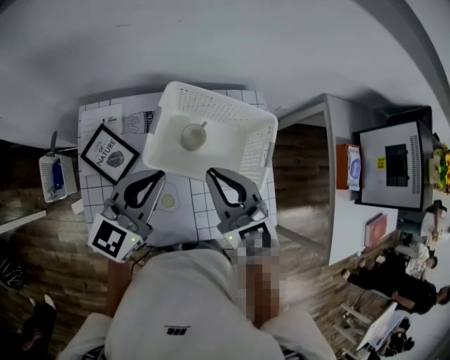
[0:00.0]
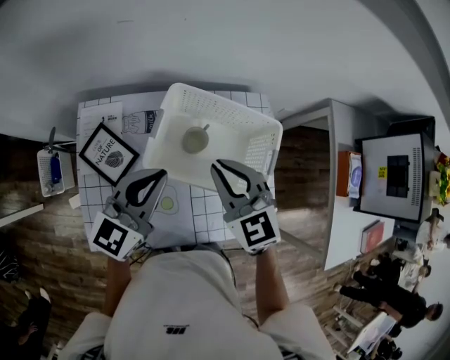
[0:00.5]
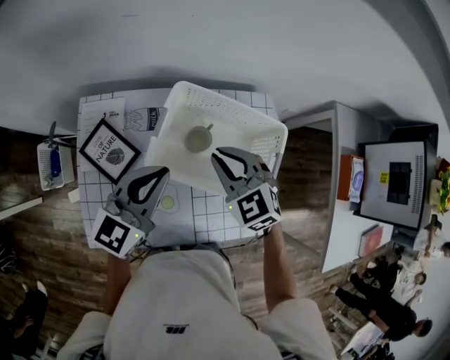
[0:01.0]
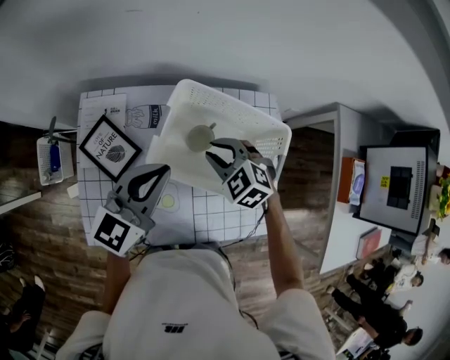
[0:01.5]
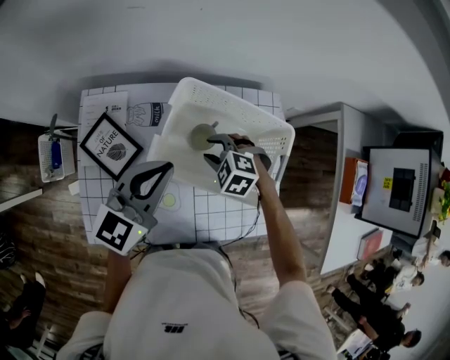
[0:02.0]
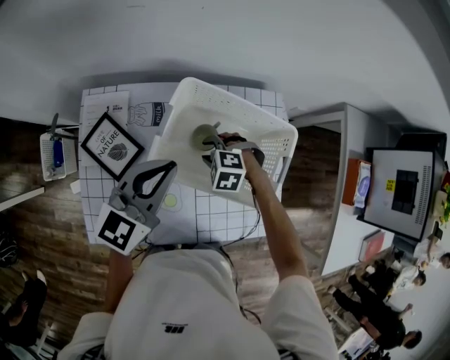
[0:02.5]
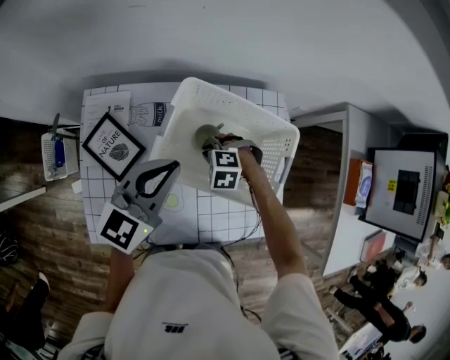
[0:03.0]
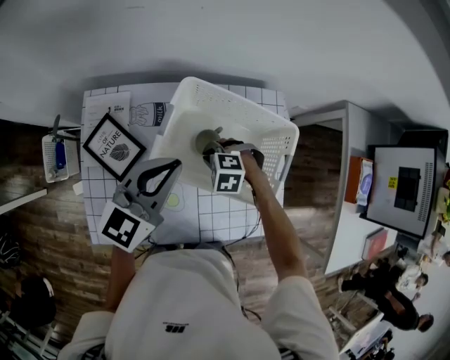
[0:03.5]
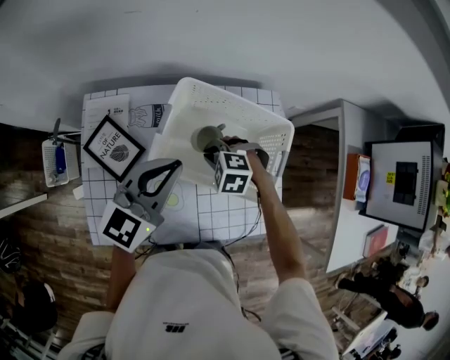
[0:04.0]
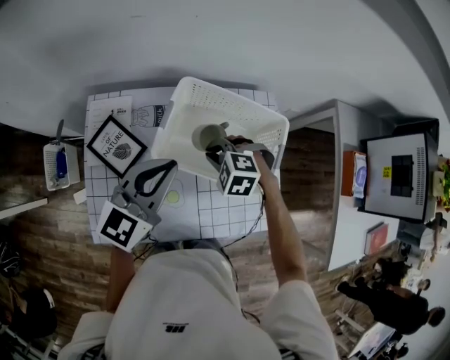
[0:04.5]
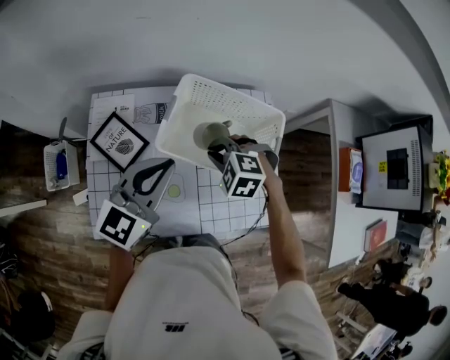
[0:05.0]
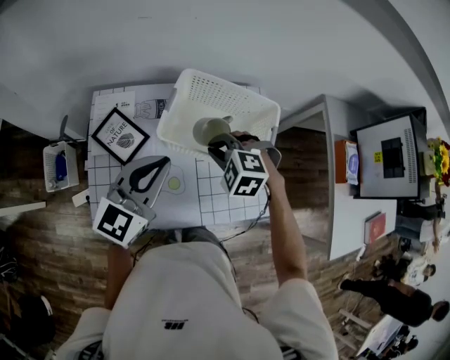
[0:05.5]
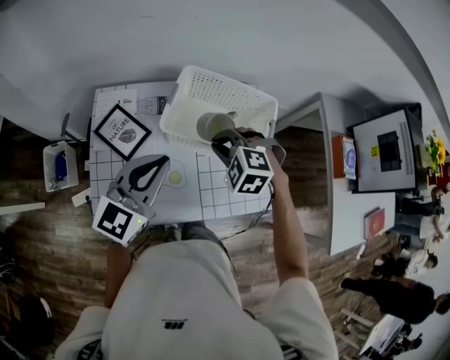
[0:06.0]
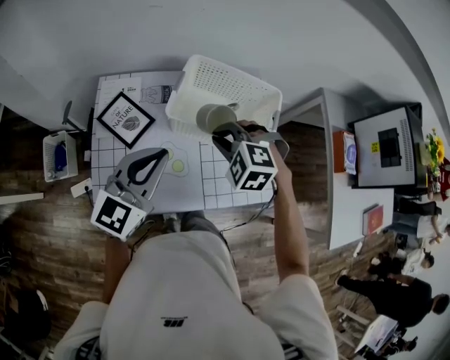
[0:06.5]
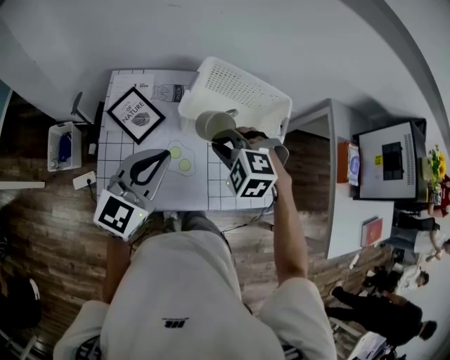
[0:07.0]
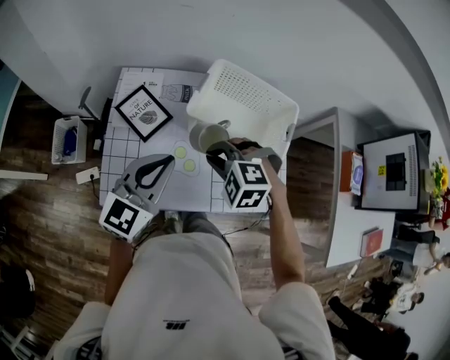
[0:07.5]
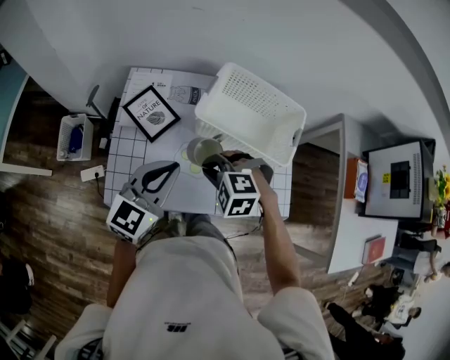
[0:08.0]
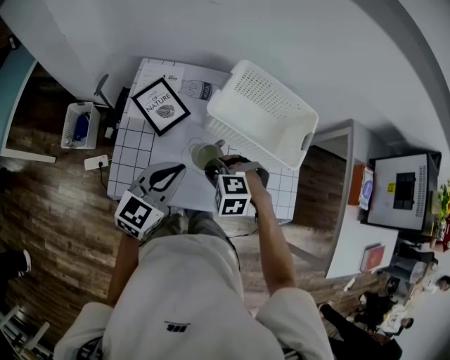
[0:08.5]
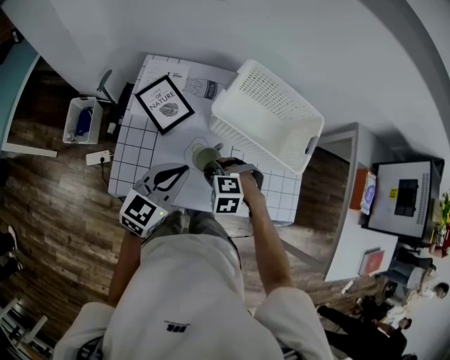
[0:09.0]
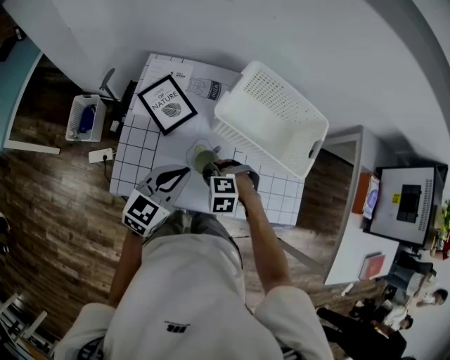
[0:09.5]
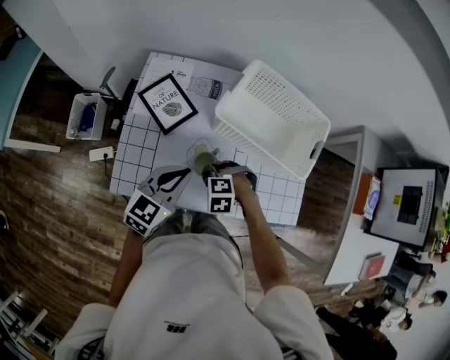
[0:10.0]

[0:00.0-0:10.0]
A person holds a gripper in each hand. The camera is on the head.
0:00.0 to 0:02.0: The left gripper moves some 5 cm. The right gripper is displaced downward by some 25 cm, angles its fingers downward, by about 50 degrees, and opens.
0:02.0 to 0:04.0: The right gripper closes.
0:04.0 to 0:06.0: The right gripper goes some 15 cm upward and backward, while the left gripper travels backward and to the left by about 15 cm.
0:06.0 to 0:08.0: The left gripper shifts approximately 5 cm backward. The right gripper is displaced backward and to the left by approximately 15 cm.
0:08.0 to 0:10.0: The right gripper is displaced downward by approximately 15 cm. Meanwhile the left gripper travels downward by some 10 cm.

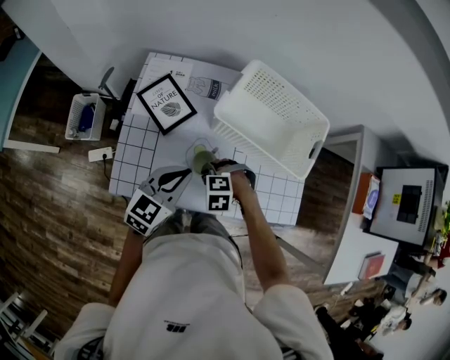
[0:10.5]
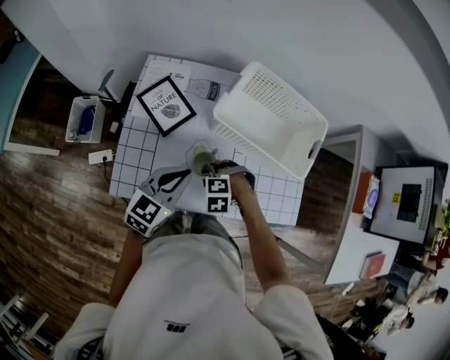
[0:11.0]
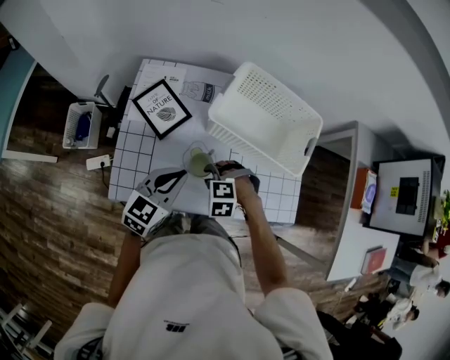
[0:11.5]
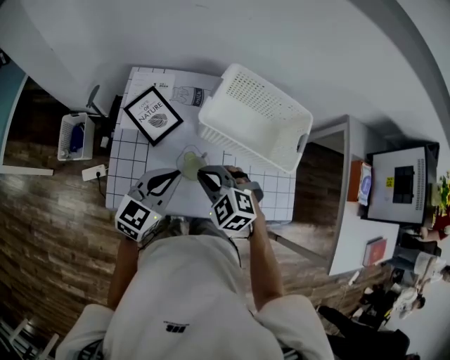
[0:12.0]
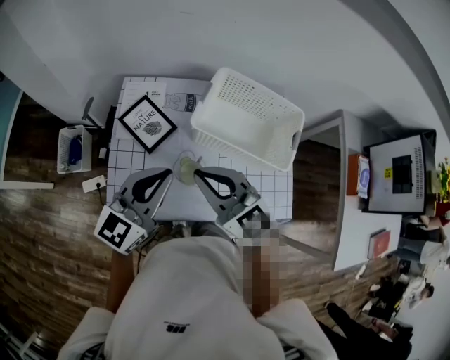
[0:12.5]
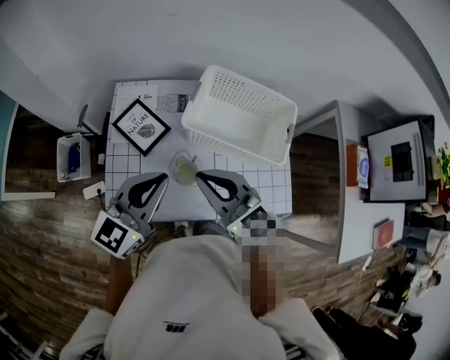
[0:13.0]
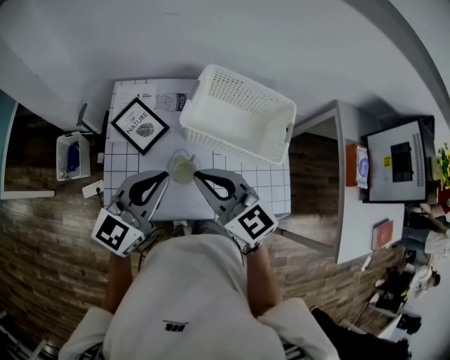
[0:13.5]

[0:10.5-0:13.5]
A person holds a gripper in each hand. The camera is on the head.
0:10.5 to 0:12.0: The right gripper moves upward, some 15 cm, rotates some 40 degrees, and opens, then closes once more.
0:12.0 to 0:13.5: Both grippers travel together upward, roughly 10 cm. The right gripper angles its fingers upward, by some 40 degrees.

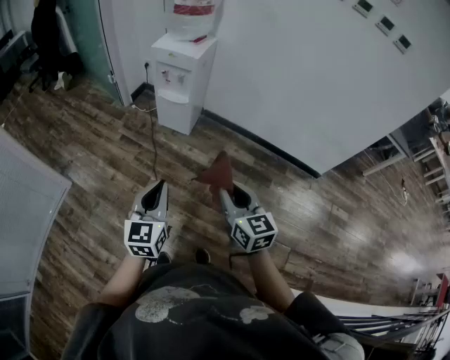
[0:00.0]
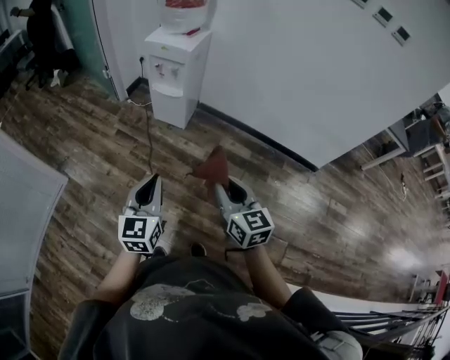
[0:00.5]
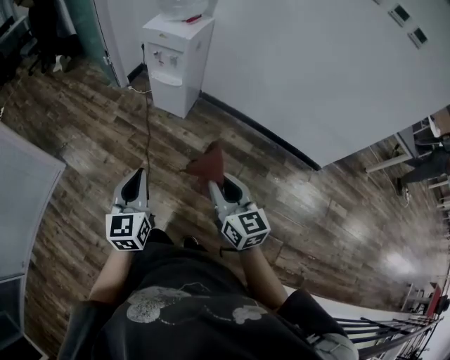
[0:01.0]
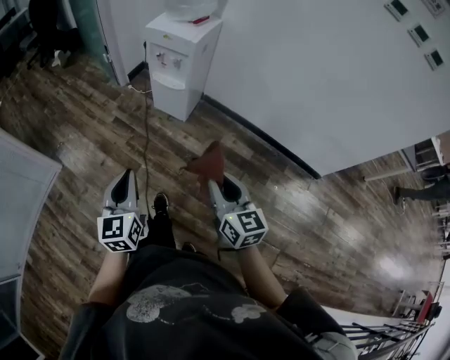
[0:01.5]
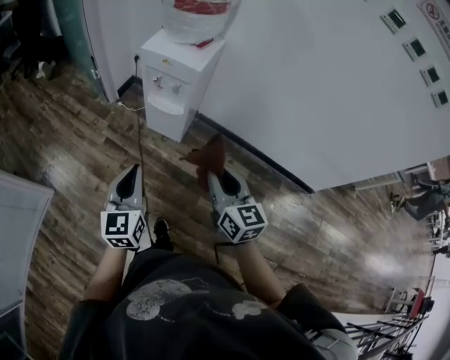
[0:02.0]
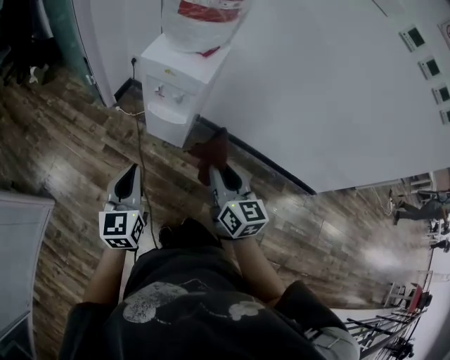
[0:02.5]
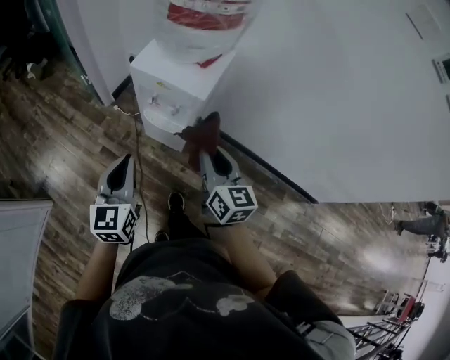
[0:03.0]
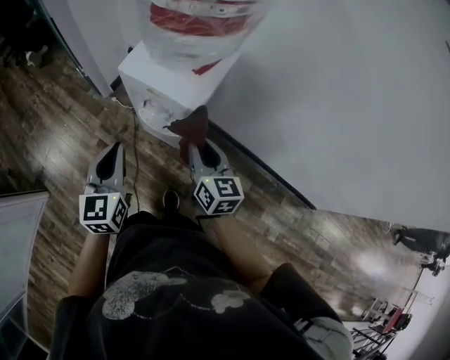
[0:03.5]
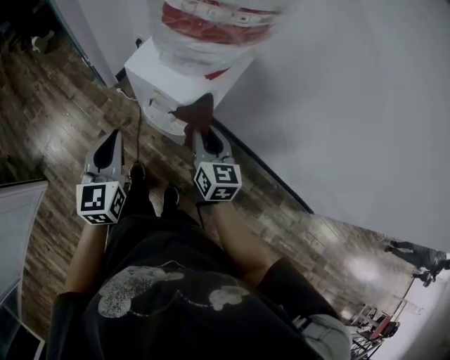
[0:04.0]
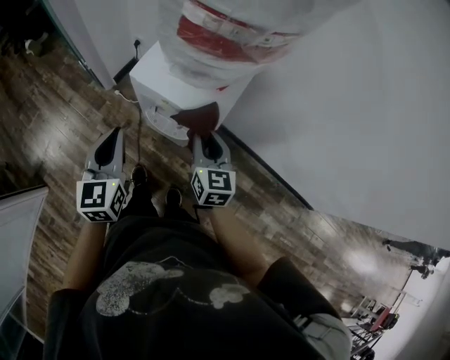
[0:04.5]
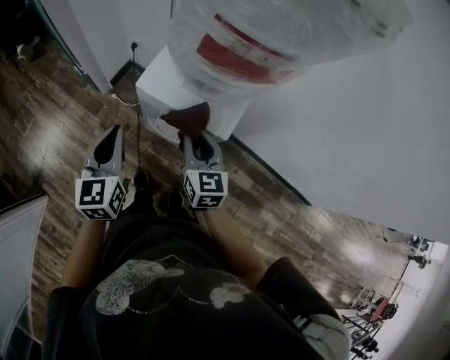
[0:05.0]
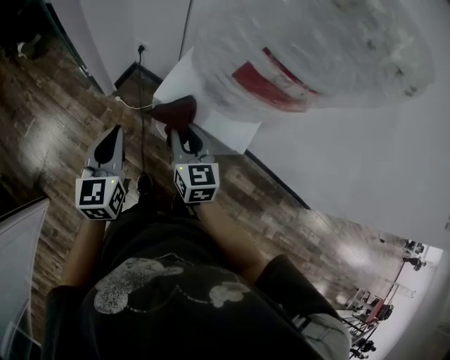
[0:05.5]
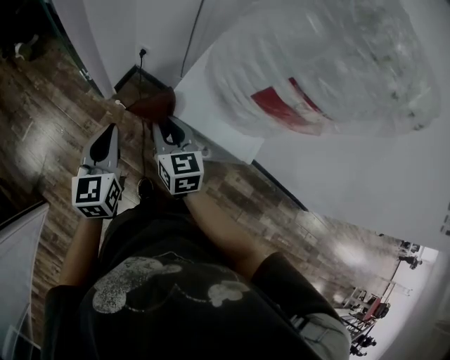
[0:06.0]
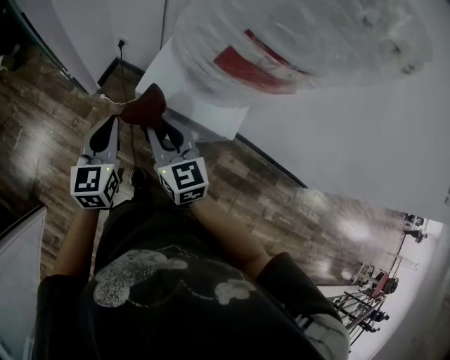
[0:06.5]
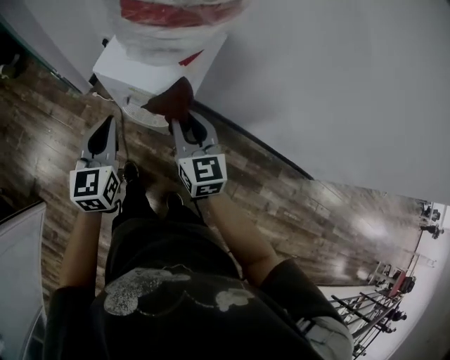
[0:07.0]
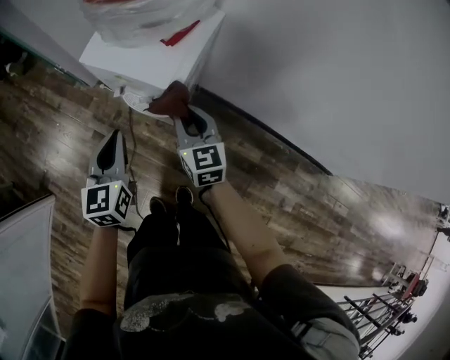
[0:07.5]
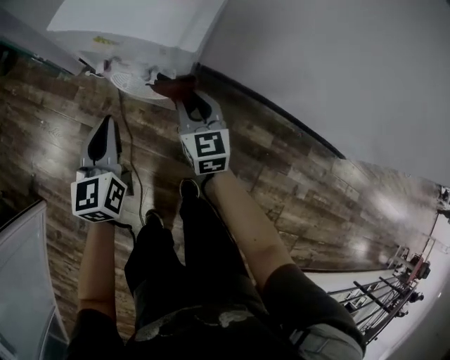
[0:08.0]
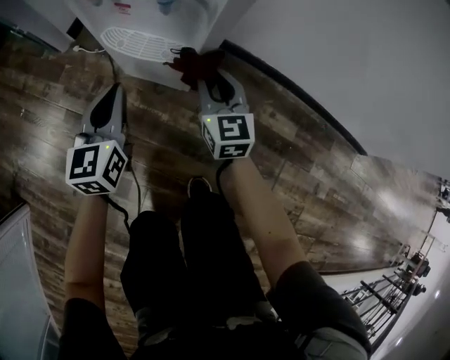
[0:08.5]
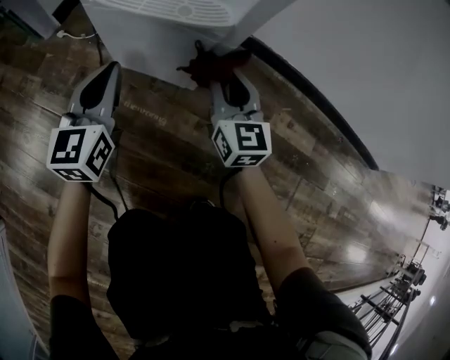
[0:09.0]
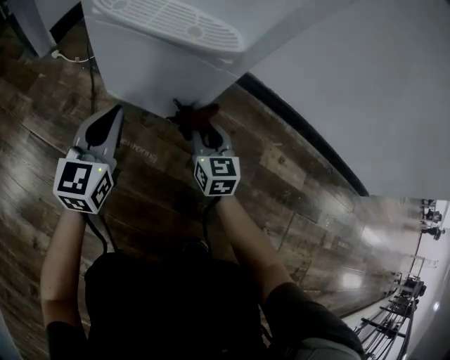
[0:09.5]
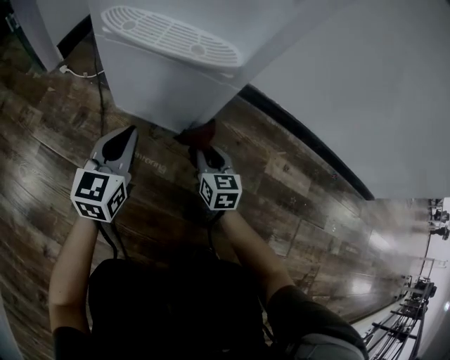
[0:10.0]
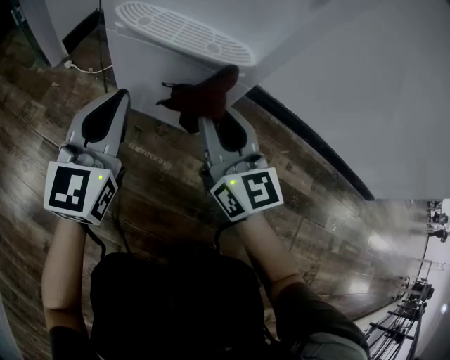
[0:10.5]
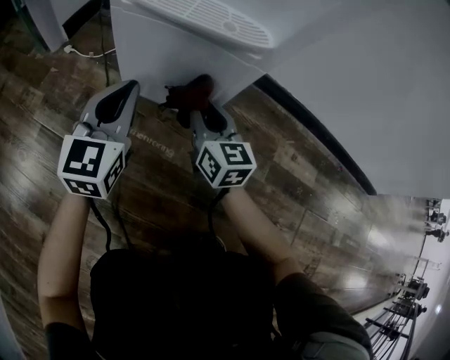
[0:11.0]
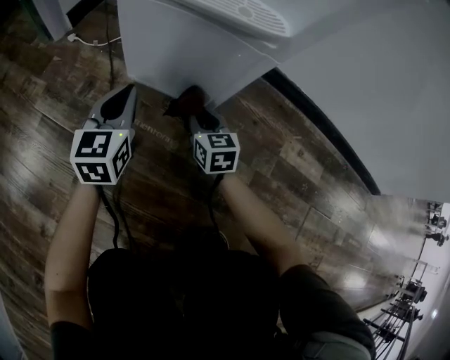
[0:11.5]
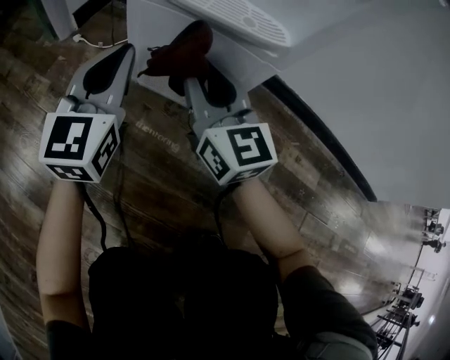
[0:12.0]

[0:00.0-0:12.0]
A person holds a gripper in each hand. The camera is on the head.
0:00.0 to 0:02.0: The grippers both shift forward by approximately 25 cm.
0:02.0 to 0:04.0: Both grippers travel together forward, about 35 cm.
0:04.0 to 0:06.0: The right gripper is displaced to the left and forward by approximately 25 cm, while the left gripper goes about 20 cm forward and to the left.
0:06.0 to 0:08.0: Both grippers travel together to the right, downward and backward, about 30 cm.
0:08.0 to 0:10.0: The grippers both shift downward by some 50 cm.
0:10.0 to 0:12.0: The right gripper goes up and down, approximately 25 cm each way, reversing 2 times, and rotates approximately 30 degrees. Meanwhile the left gripper swings up and down, about 15 cm each way, with 2 reversals.

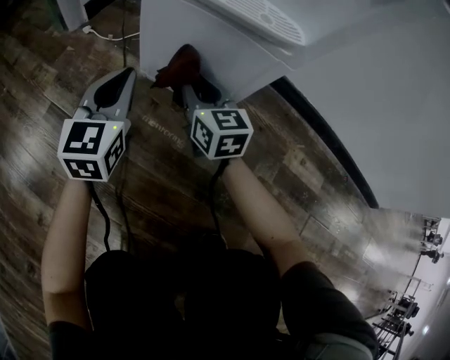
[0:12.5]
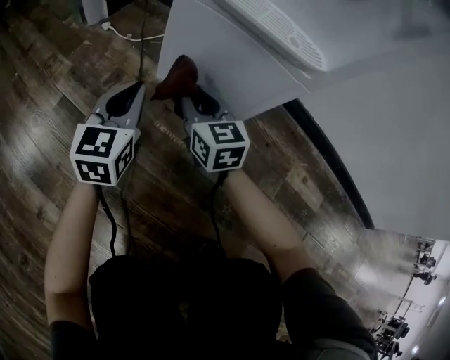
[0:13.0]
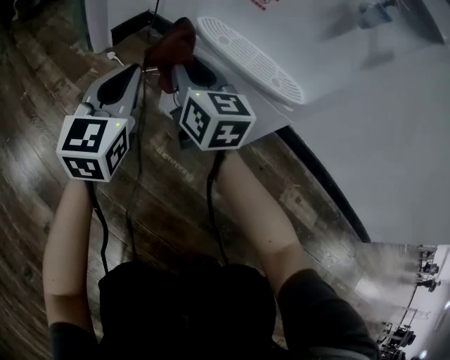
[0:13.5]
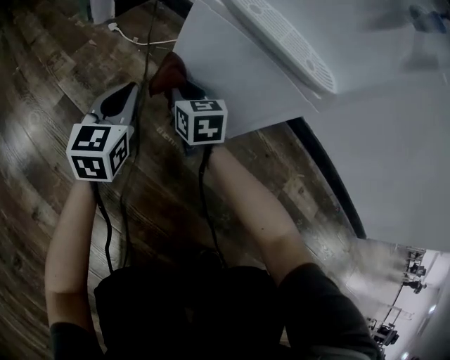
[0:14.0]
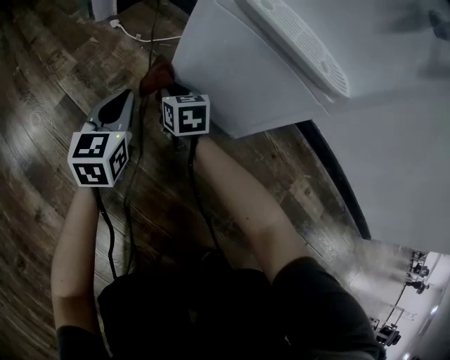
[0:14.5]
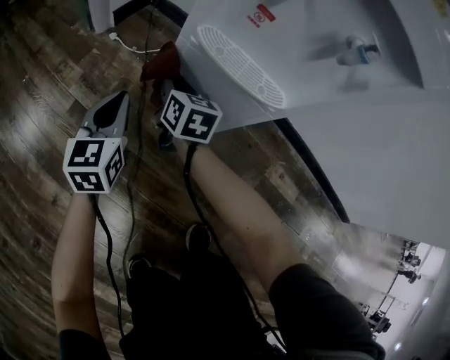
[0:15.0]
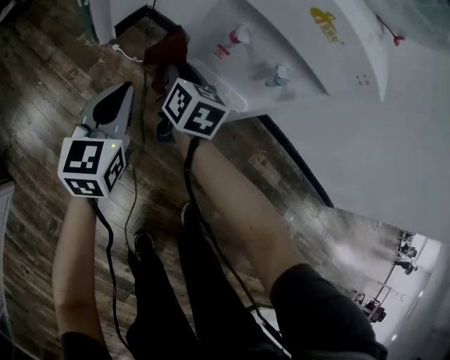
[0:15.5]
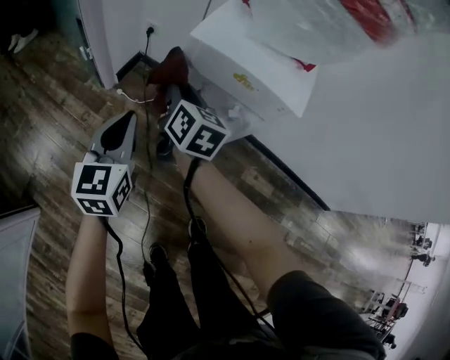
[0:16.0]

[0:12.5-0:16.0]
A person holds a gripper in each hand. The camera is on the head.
0:12.5 to 0:14.5: The right gripper is displaced downward, to the left and forward by roughly 20 cm, and changes its angle by roughly 20 degrees. Meanwhile the left gripper heads downward and to the left, covering roughly 10 cm.
0:14.5 to 0:16.0: The grippers both shift upward by approximately 60 cm. The right gripper changes its angle by about 40 degrees.
